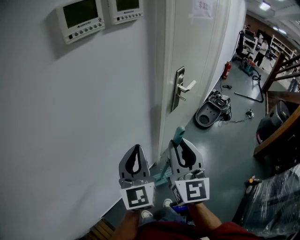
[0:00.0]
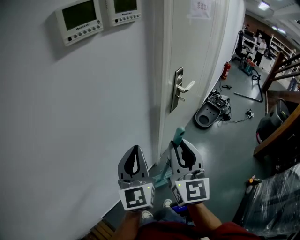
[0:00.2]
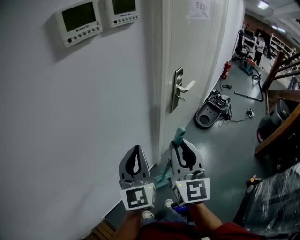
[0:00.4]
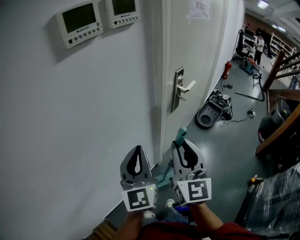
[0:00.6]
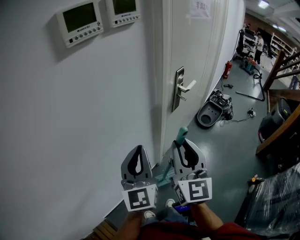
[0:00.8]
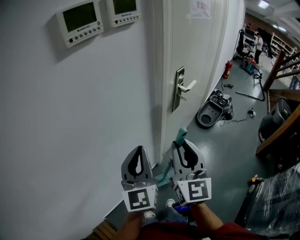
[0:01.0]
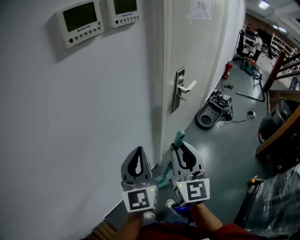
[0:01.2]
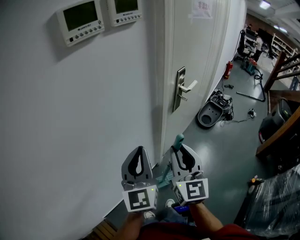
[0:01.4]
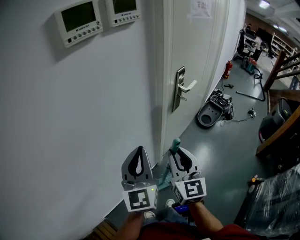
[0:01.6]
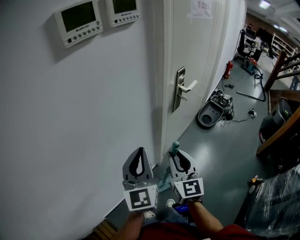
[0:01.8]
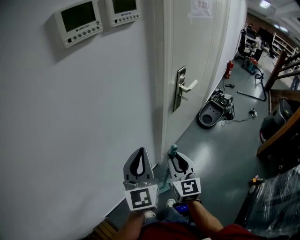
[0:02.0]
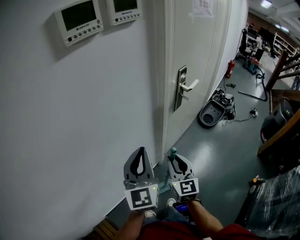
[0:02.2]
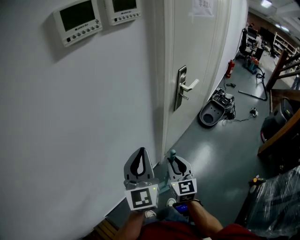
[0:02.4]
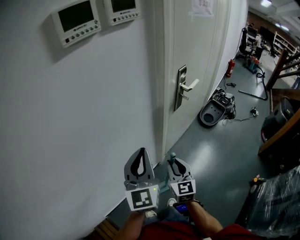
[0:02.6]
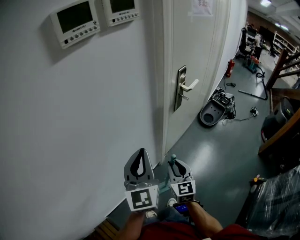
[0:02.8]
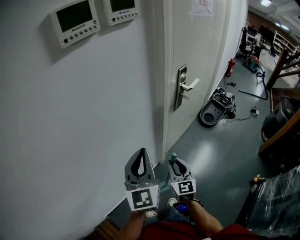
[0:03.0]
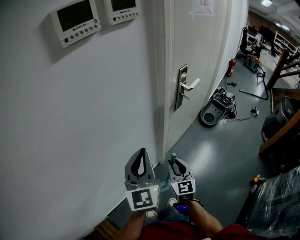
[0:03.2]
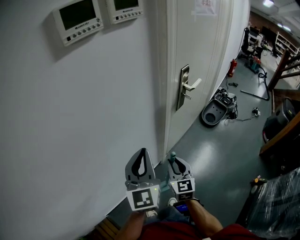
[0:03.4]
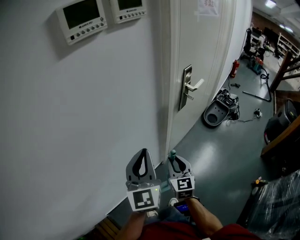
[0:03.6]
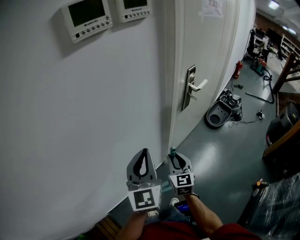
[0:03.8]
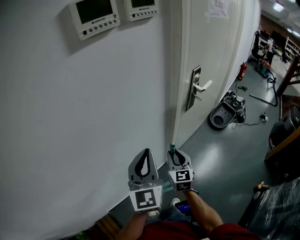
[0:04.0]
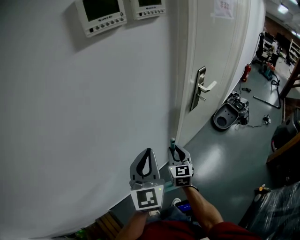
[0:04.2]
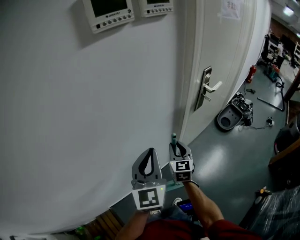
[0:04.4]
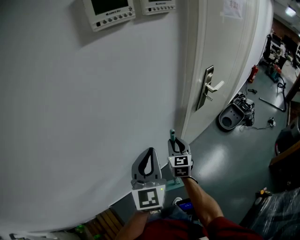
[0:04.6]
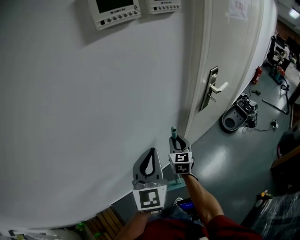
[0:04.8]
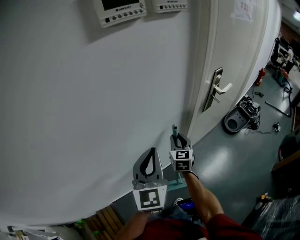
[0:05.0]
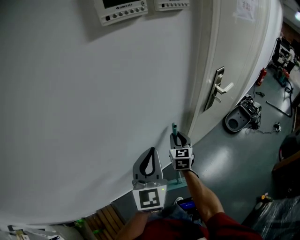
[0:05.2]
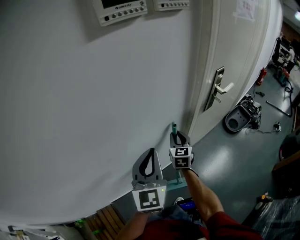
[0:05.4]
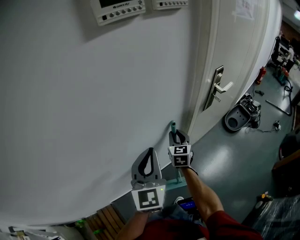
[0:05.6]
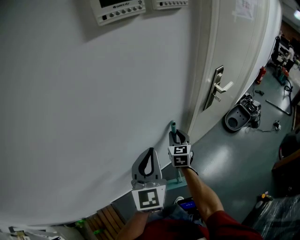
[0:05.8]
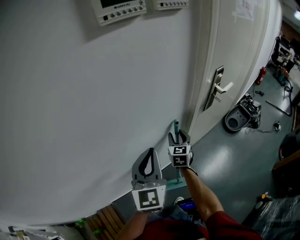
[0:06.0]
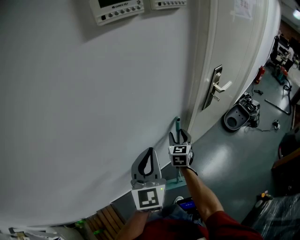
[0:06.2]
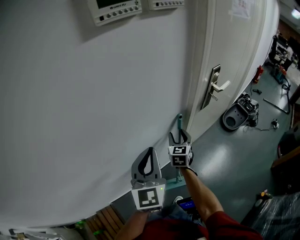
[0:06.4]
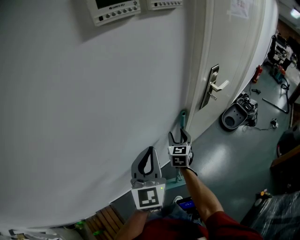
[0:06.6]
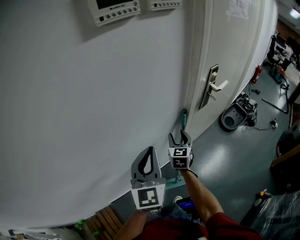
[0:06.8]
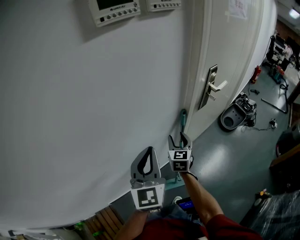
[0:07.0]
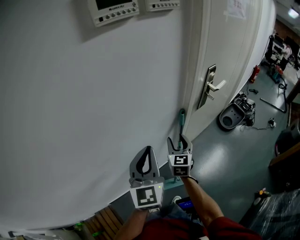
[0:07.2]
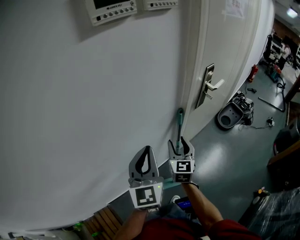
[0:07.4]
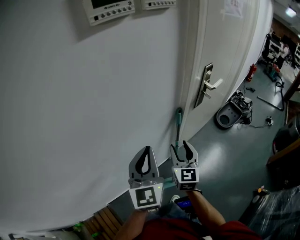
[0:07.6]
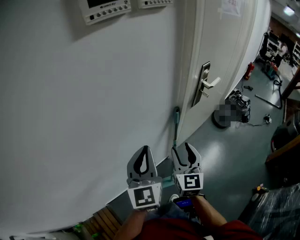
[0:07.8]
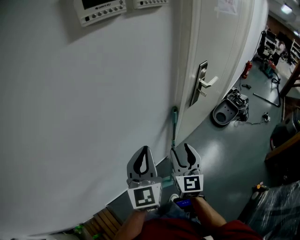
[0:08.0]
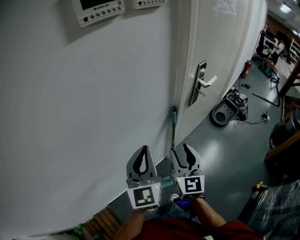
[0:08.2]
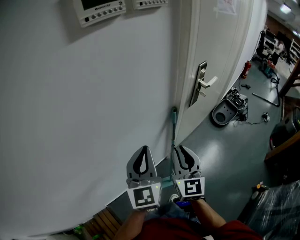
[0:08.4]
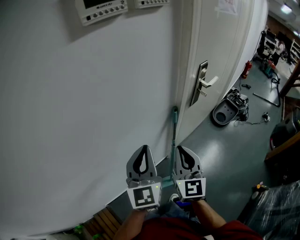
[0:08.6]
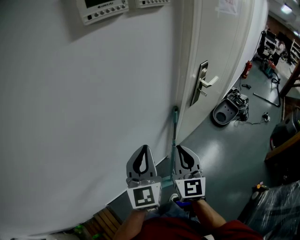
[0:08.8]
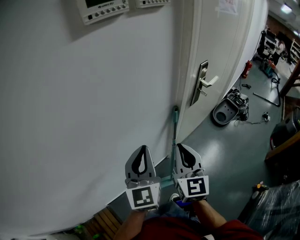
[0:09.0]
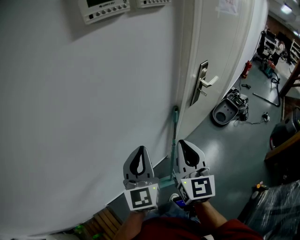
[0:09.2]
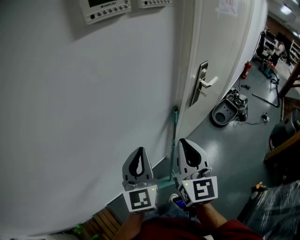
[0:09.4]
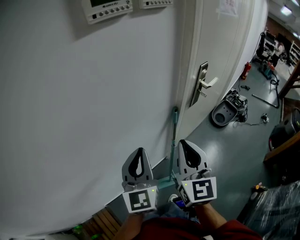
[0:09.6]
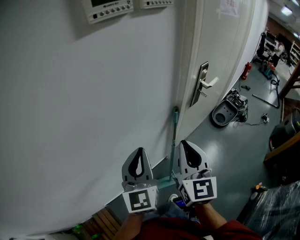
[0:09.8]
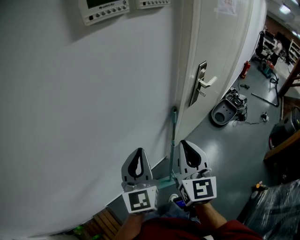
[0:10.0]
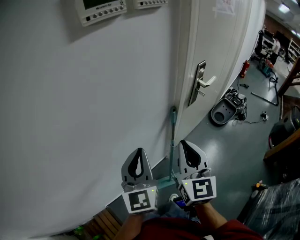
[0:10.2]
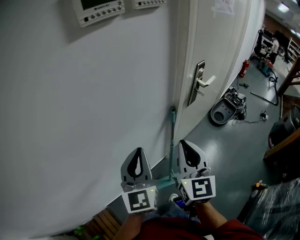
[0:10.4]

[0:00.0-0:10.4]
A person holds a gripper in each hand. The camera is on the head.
0:00.0 to 0:01.4: The grippers move only a little.
0:01.4 to 0:03.0: The right gripper is displaced downward by about 15 cm.
0:03.0 to 0:04.4: The right gripper shifts roughly 10 cm forward and to the left.
0:04.4 to 0:06.0: The right gripper goes some 5 cm forward.
0:06.0 to 0:07.4: The right gripper goes some 10 cm backward.
0:07.4 to 0:09.0: The right gripper moves upward and backward, about 15 cm, and closes.
0:09.0 to 0:10.4: The grippers make only small movements.

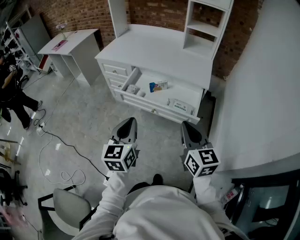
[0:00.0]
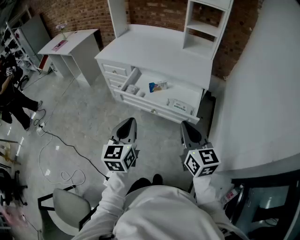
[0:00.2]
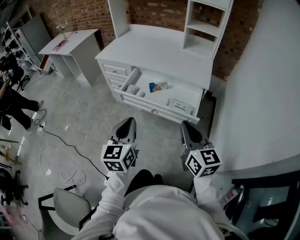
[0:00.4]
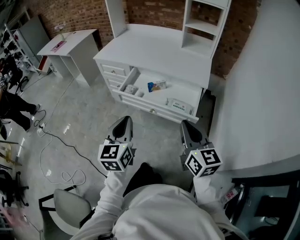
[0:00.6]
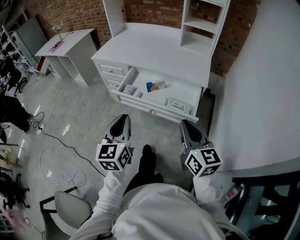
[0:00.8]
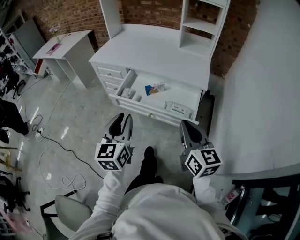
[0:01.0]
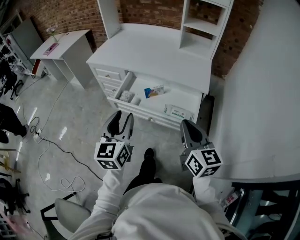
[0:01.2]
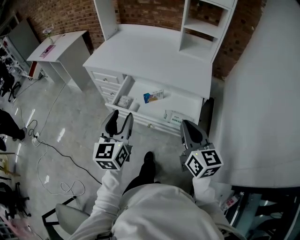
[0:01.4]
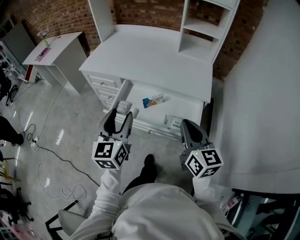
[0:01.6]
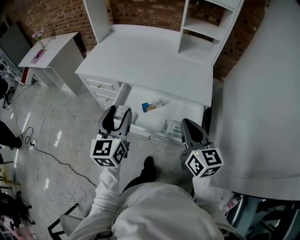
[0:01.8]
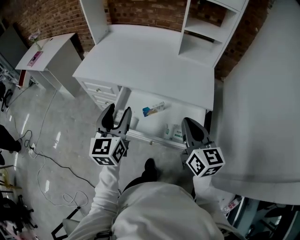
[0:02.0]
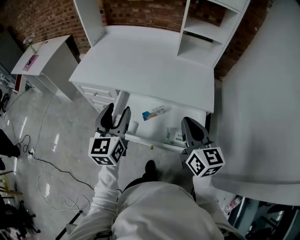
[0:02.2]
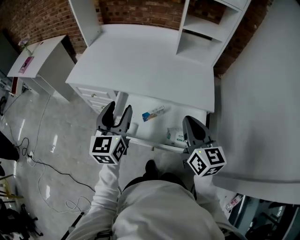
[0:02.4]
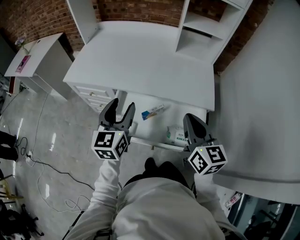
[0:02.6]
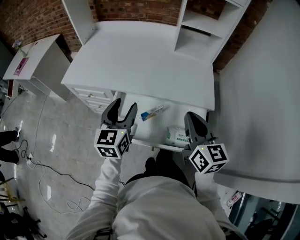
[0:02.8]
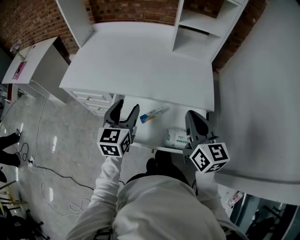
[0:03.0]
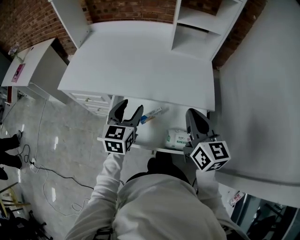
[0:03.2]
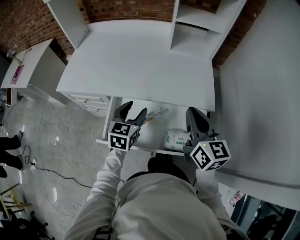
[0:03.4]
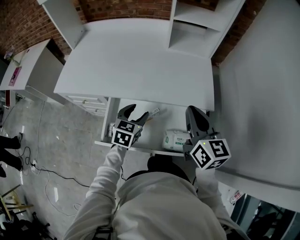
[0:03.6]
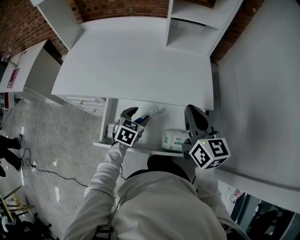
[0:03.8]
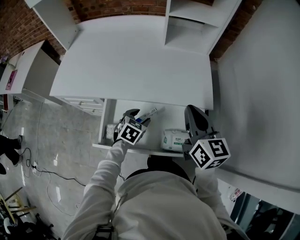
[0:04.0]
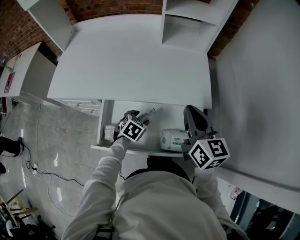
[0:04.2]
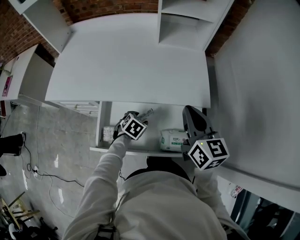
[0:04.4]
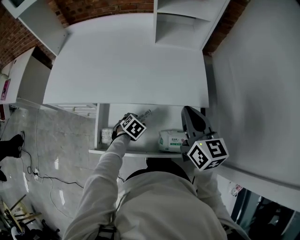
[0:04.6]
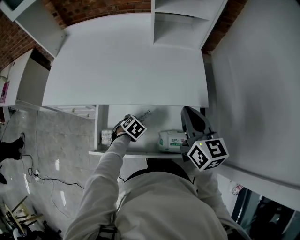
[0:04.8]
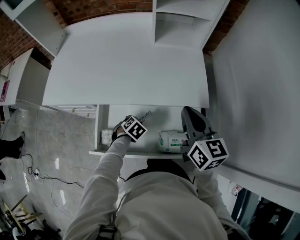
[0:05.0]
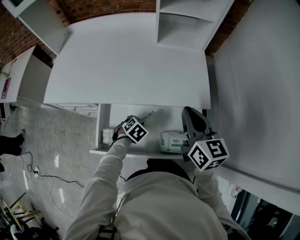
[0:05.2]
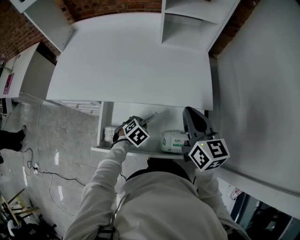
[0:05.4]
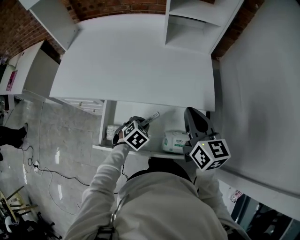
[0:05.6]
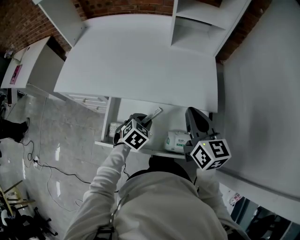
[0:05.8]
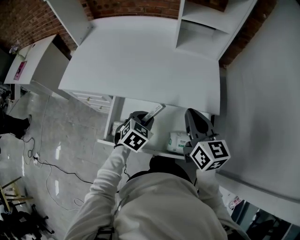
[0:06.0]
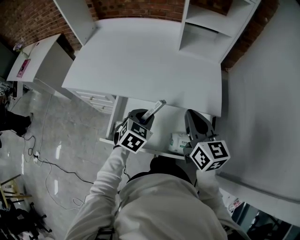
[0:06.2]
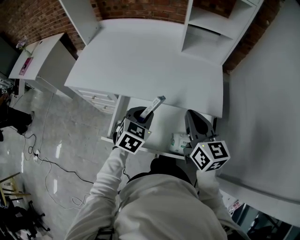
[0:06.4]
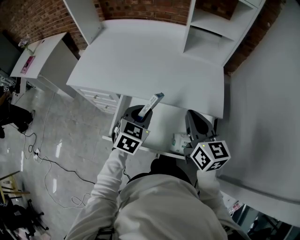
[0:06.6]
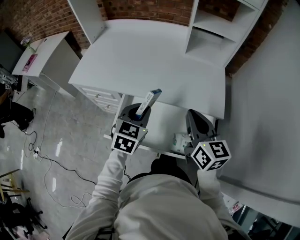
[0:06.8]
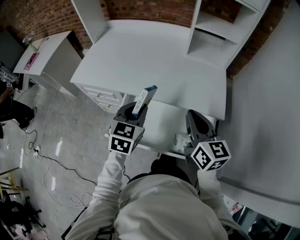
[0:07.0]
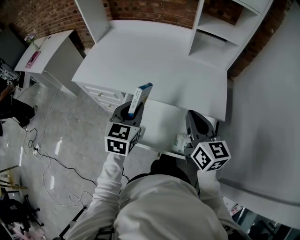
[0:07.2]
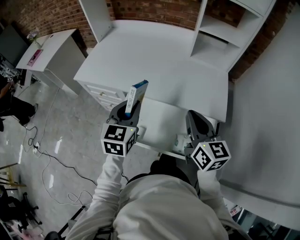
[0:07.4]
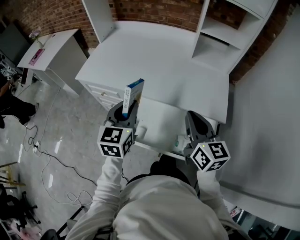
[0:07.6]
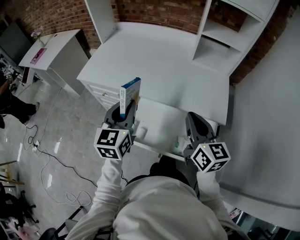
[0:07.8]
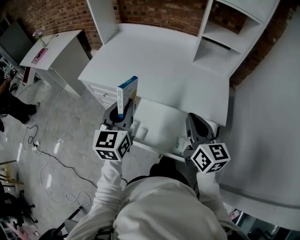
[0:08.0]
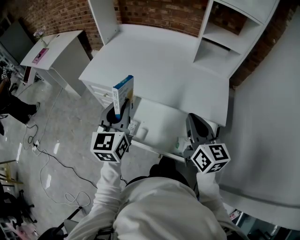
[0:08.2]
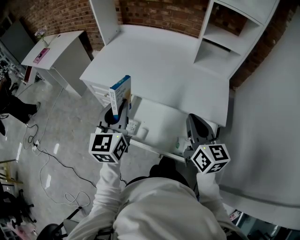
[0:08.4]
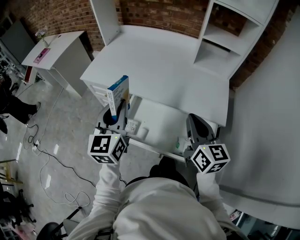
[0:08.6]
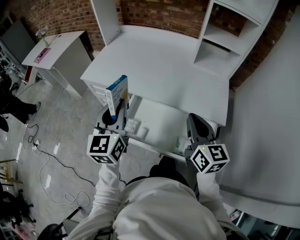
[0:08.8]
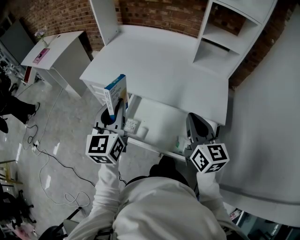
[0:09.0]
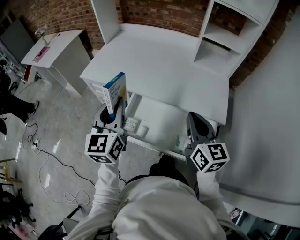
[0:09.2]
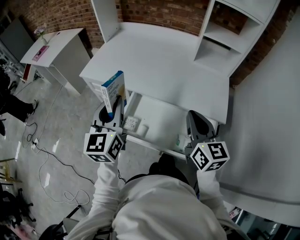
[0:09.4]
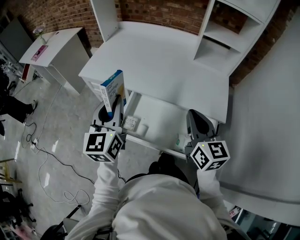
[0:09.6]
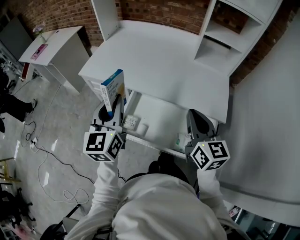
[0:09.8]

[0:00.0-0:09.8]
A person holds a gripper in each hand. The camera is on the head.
0:00.0 to 0:01.4: The two grippers go roughly 15 cm forward. The left gripper opens.
0:01.4 to 0:02.8: Both grippers travel together forward, some 20 cm.
0:02.8 to 0:04.2: The right gripper is displaced forward by some 10 cm; the left gripper travels downward and to the right by approximately 25 cm, and points its fingers approximately 50 degrees further downward.
0:04.2 to 0:05.6: The left gripper closes up.
0:05.6 to 0:07.0: The left gripper moves upward, some 20 cm, and points its fingers approximately 30 degrees further upward. The right gripper is displaced to the left by approximately 5 cm.
0:07.0 to 0:08.4: The left gripper shifts about 15 cm to the left and upward, and swivels some 30 degrees.
0:08.4 to 0:09.8: The grippers make only small movements.

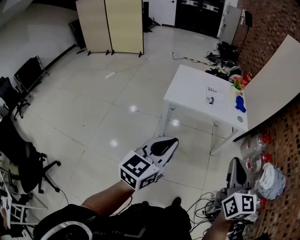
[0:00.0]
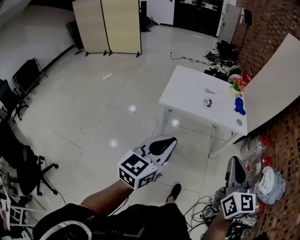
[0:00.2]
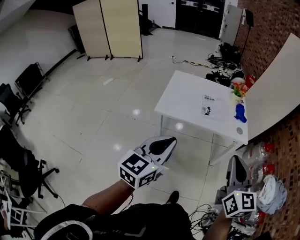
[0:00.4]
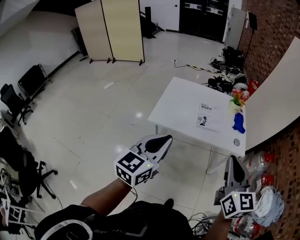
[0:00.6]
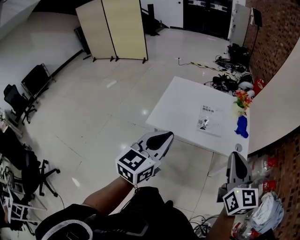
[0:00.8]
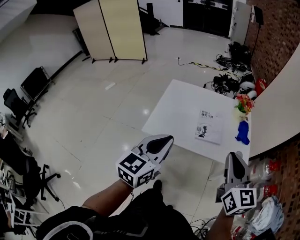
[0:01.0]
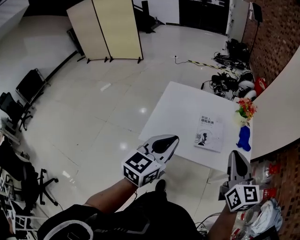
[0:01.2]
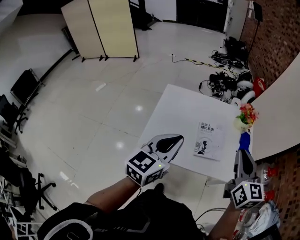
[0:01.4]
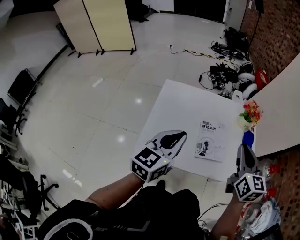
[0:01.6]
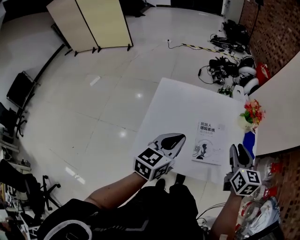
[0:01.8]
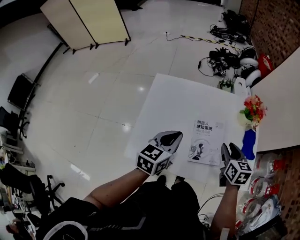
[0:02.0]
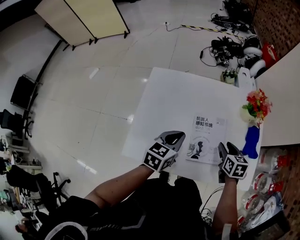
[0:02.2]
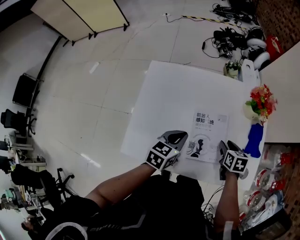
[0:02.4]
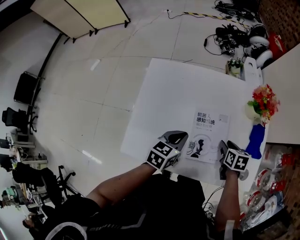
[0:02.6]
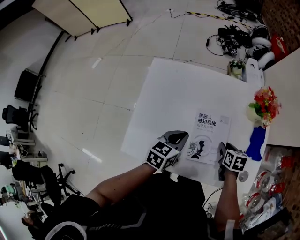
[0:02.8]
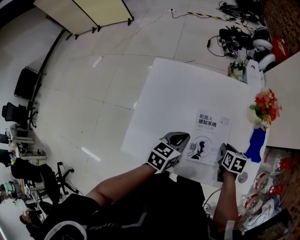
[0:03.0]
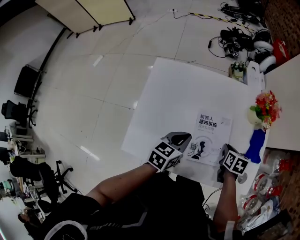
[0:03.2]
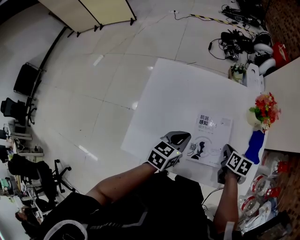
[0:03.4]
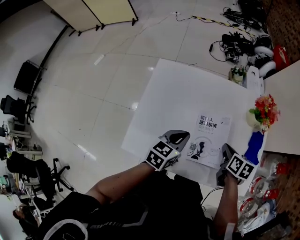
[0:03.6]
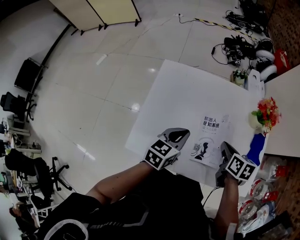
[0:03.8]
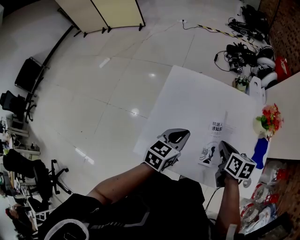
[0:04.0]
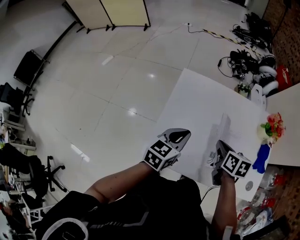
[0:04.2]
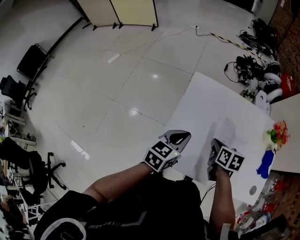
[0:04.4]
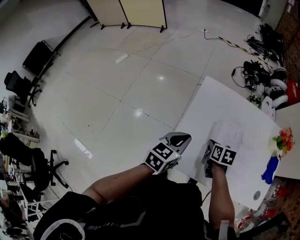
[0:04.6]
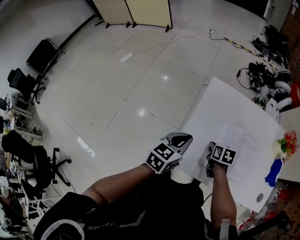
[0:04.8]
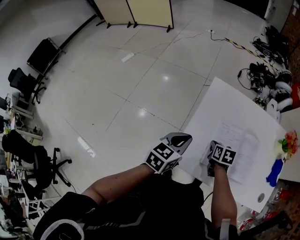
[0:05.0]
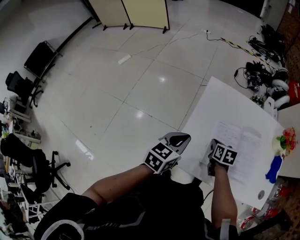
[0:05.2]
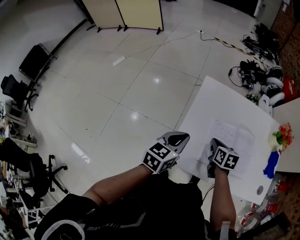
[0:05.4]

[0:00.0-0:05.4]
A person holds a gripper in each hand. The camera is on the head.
0:00.0 to 0:01.4: Both grippers are carried forward, some 50 cm.
0:01.4 to 0:02.8: Both grippers travel together downward and forward, about 40 cm. The right gripper angles its fingers downward, by about 50 degrees, and opens, while the left gripper swivels some 30 degrees.
0:02.8 to 0:04.0: The left gripper heads to the left and upward, covering some 10 cm, while the right gripper moves upward and to the left, about 20 cm, and closes its fingers.
0:04.0 to 0:05.4: The grippers both shift to the left by about 20 cm.
